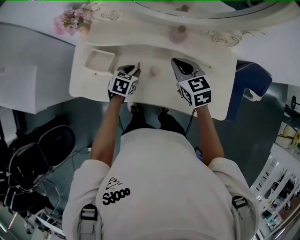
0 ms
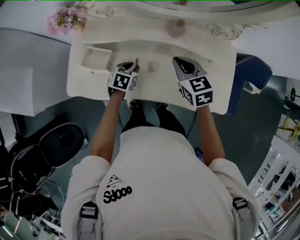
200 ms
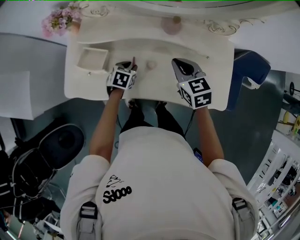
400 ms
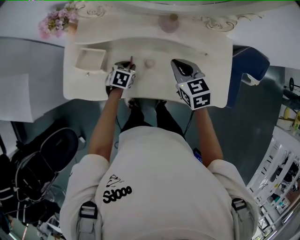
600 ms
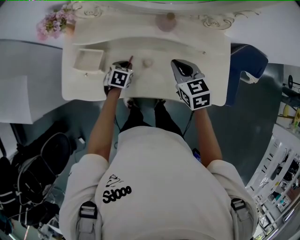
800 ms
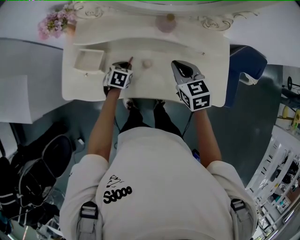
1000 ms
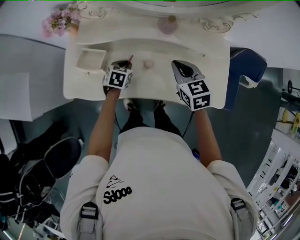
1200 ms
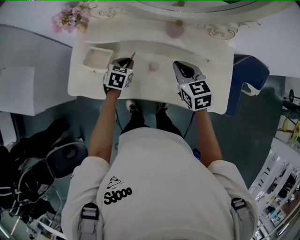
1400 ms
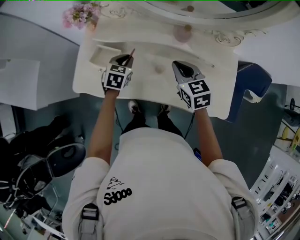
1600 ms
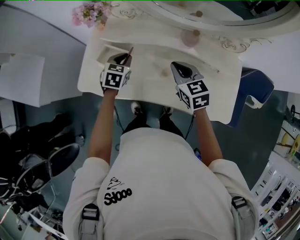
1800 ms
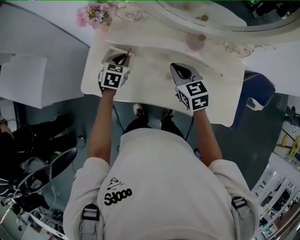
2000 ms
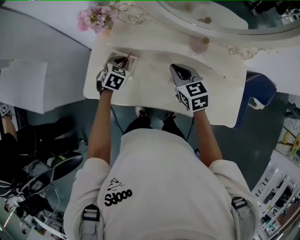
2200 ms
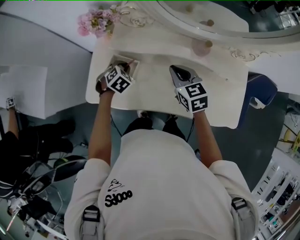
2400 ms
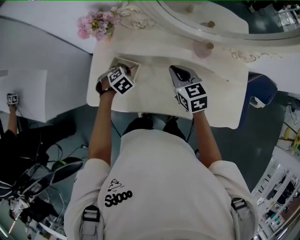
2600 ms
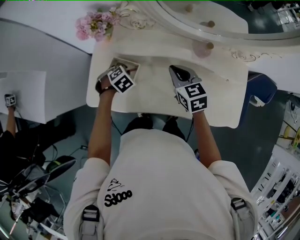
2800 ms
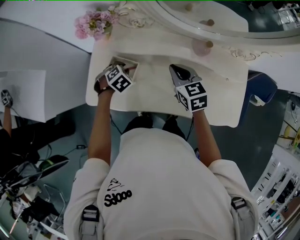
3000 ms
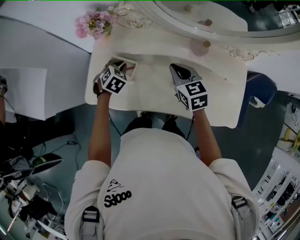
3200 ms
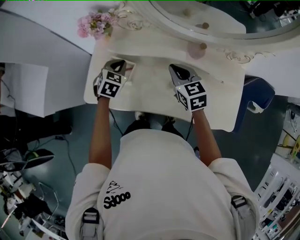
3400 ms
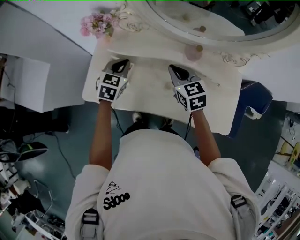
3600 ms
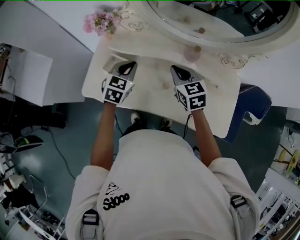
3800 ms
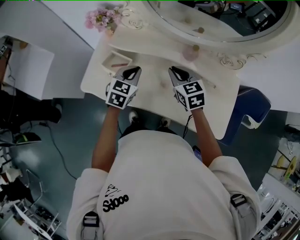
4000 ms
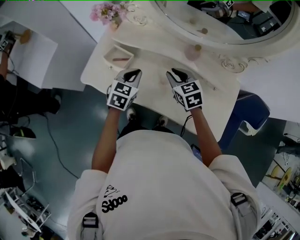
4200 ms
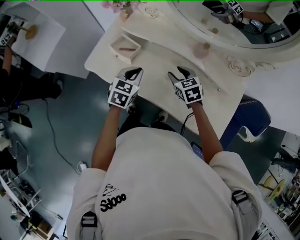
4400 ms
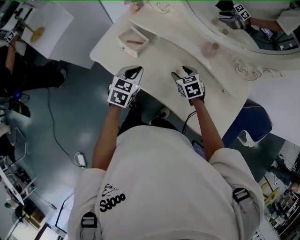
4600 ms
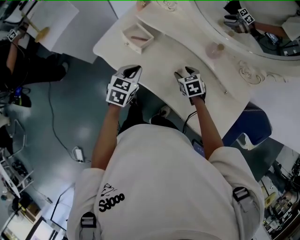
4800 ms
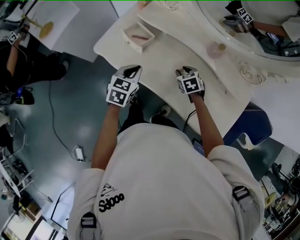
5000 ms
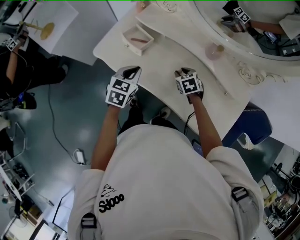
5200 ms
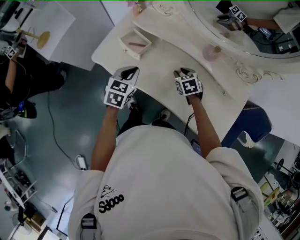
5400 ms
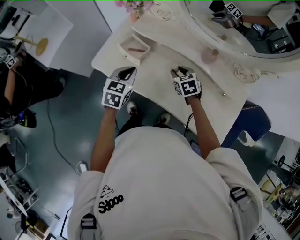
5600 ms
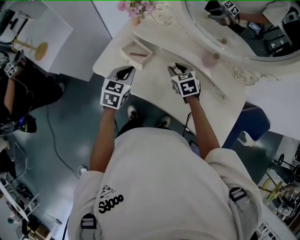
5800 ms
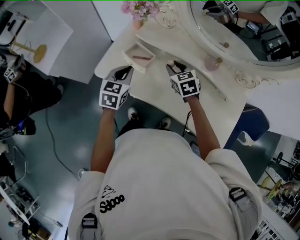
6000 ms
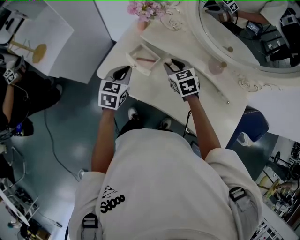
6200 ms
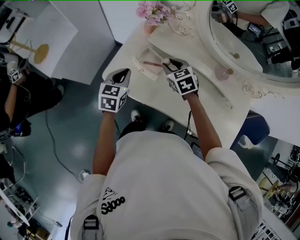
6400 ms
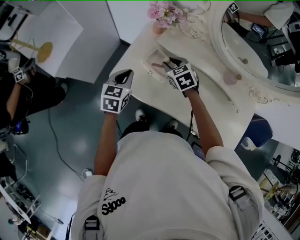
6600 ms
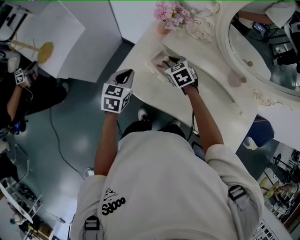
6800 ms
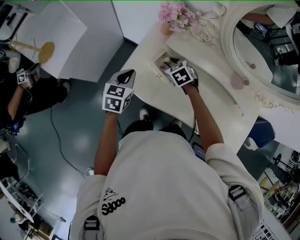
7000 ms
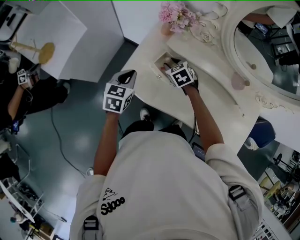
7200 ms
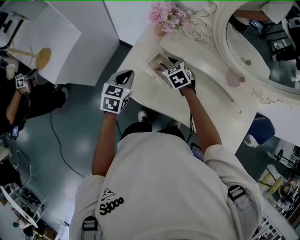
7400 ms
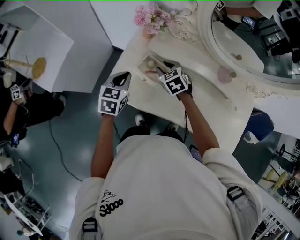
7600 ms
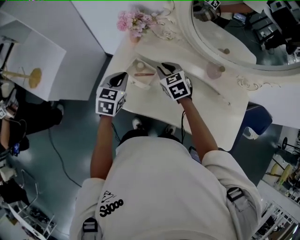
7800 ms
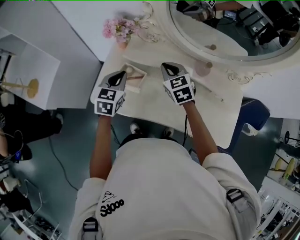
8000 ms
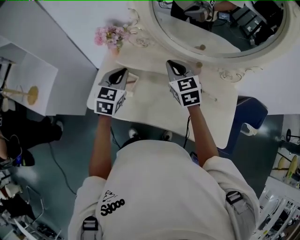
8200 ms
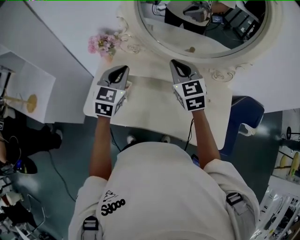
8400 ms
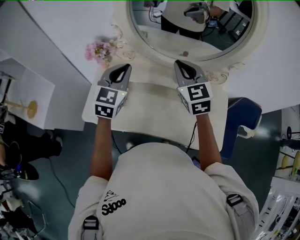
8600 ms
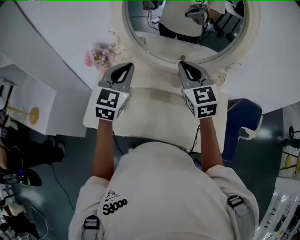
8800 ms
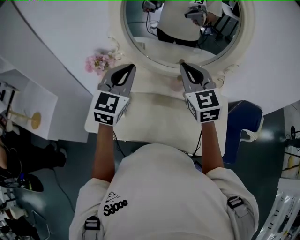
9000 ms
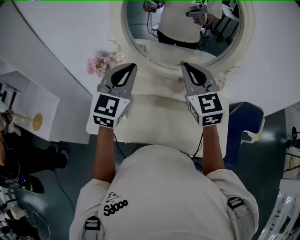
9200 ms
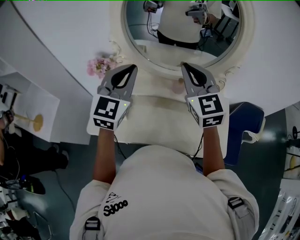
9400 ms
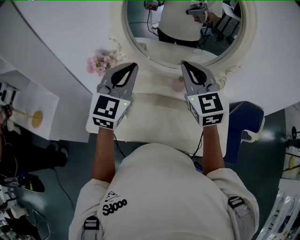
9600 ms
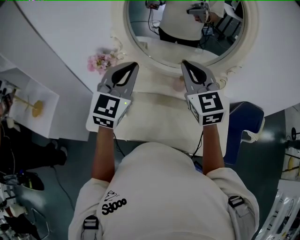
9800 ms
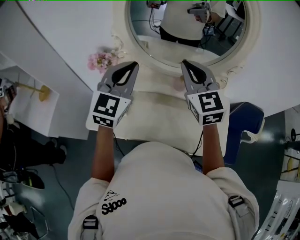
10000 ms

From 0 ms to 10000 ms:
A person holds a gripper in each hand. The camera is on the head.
From 0 ms to 1400 ms: The left gripper moves roughly 5 cm downward and comes back.
From 1400 ms to 2800 ms: The left gripper goes roughly 15 cm to the left, and changes its angle by approximately 40 degrees. Meanwhile the right gripper shifts roughly 15 cm to the left and forward.
From 2800 ms to 4200 ms: The left gripper is displaced upward, to the right and backward by some 20 cm, and points its fingers some 40 degrees further upward; the right gripper shifts approximately 10 cm to the right and backward.
From 4200 ms to 5800 ms: The right gripper shifts approximately 5 cm to the left, reaches some 15 cm downward, then returns, and opens, then closes again. The left gripper travels to the left by roughly 10 cm.
From 5800 ms to 7200 ms: The grippers both shift to the left and forward by roughly 20 cm.
From 7200 ms to 8600 ms: The left gripper shifts roughly 35 cm to the right and upward, and changes its angle by some 30 degrees, while the right gripper goes approximately 40 cm upward and to the right, tips its fingers upward by some 40 degrees, and closes up.
From 8600 ms to 10000 ms: The two grippers go roughly 10 cm upward.

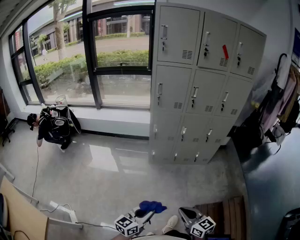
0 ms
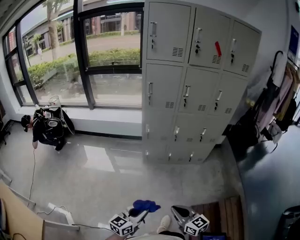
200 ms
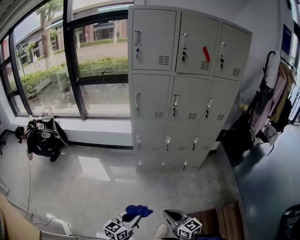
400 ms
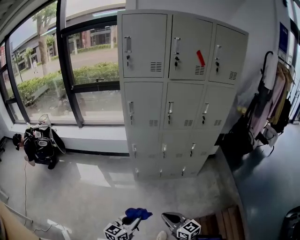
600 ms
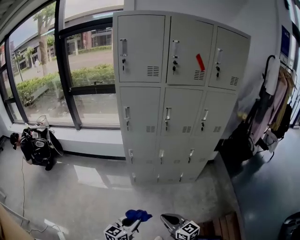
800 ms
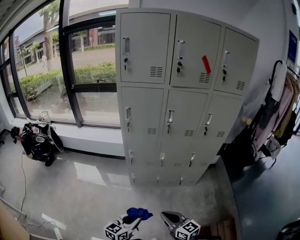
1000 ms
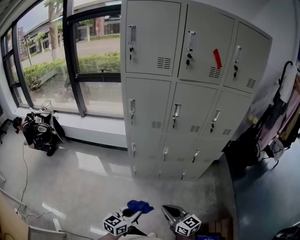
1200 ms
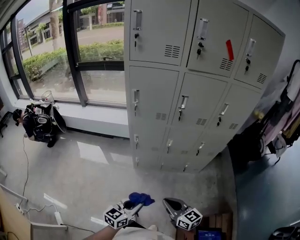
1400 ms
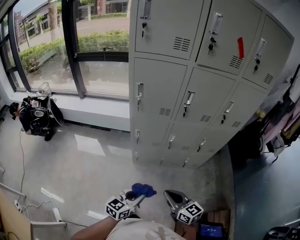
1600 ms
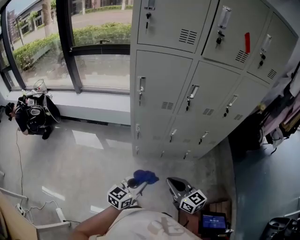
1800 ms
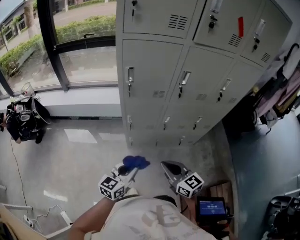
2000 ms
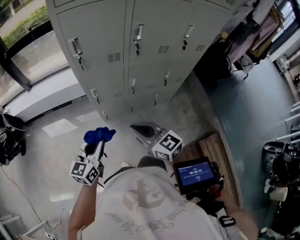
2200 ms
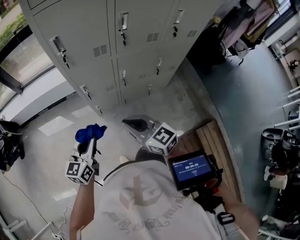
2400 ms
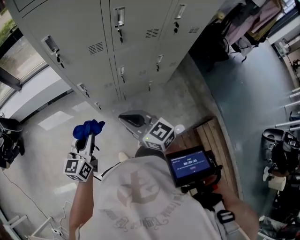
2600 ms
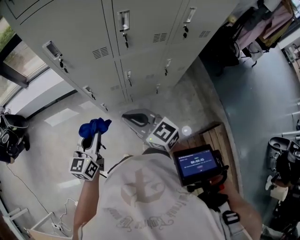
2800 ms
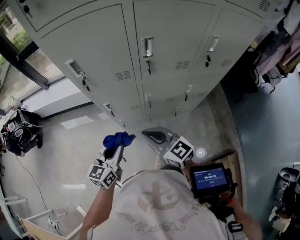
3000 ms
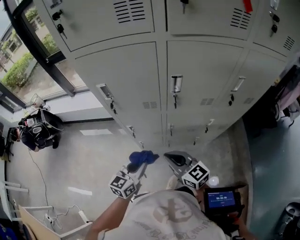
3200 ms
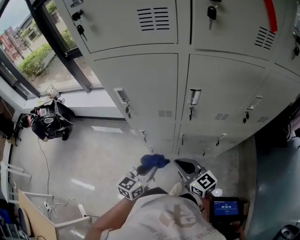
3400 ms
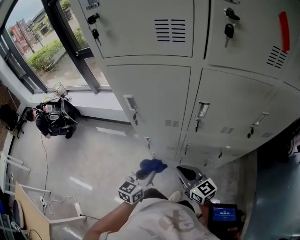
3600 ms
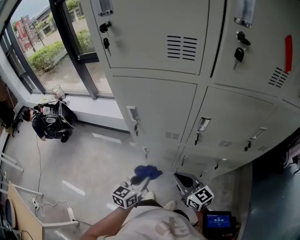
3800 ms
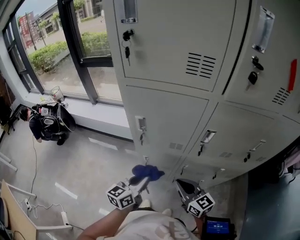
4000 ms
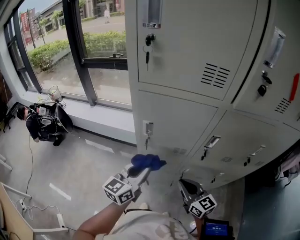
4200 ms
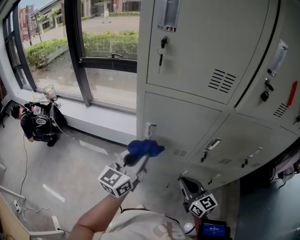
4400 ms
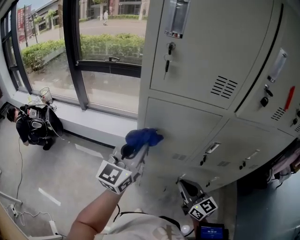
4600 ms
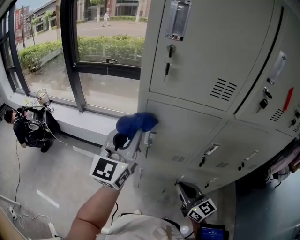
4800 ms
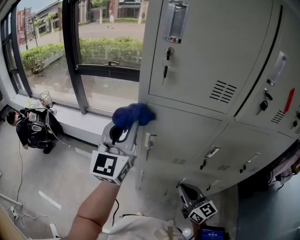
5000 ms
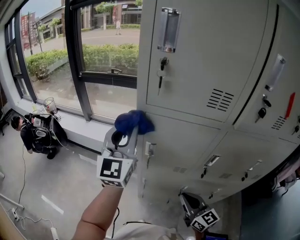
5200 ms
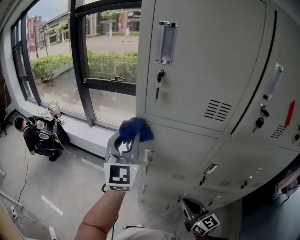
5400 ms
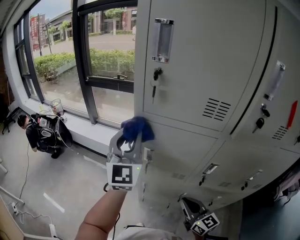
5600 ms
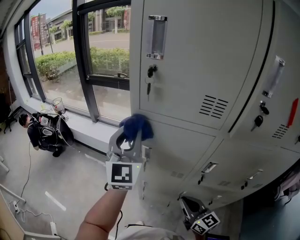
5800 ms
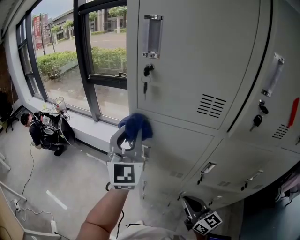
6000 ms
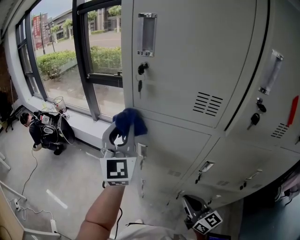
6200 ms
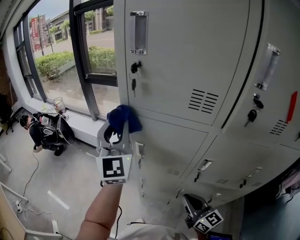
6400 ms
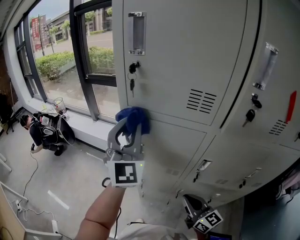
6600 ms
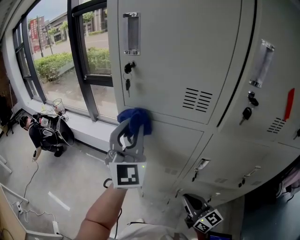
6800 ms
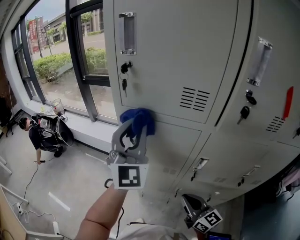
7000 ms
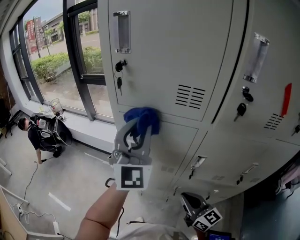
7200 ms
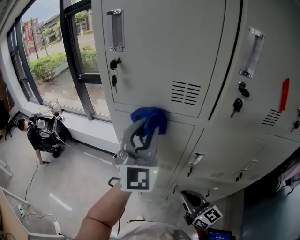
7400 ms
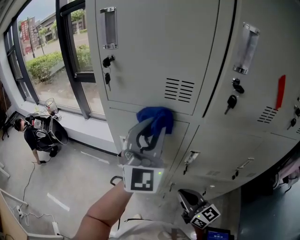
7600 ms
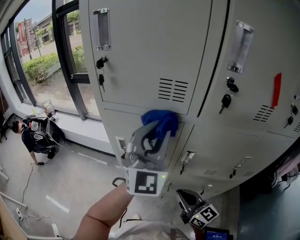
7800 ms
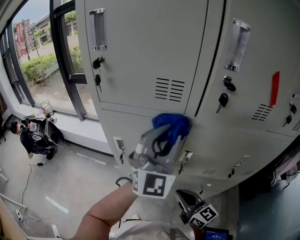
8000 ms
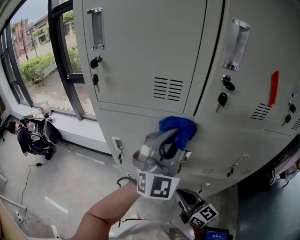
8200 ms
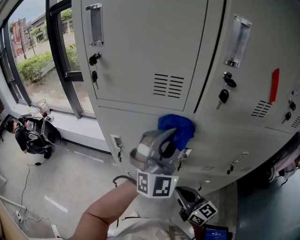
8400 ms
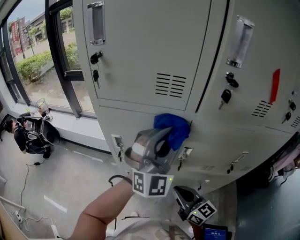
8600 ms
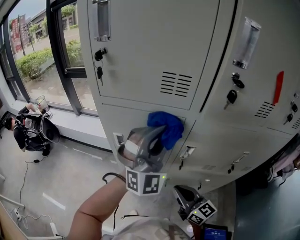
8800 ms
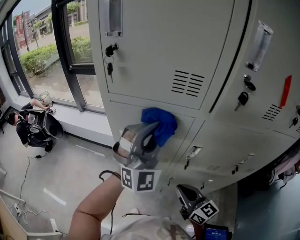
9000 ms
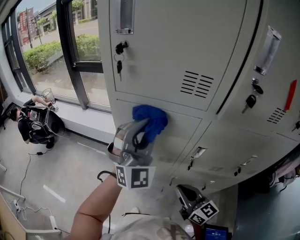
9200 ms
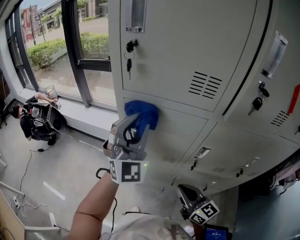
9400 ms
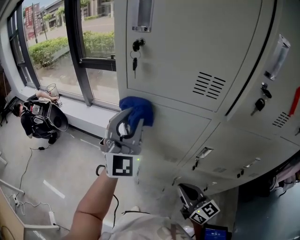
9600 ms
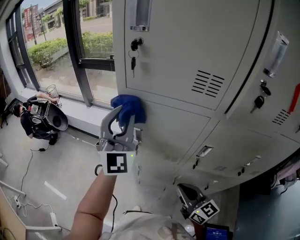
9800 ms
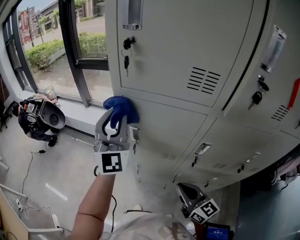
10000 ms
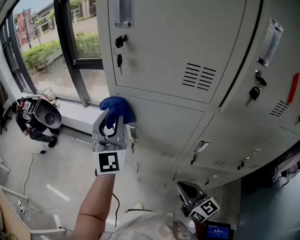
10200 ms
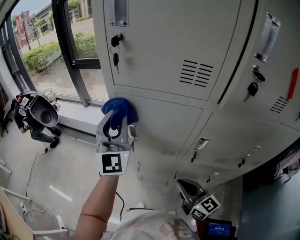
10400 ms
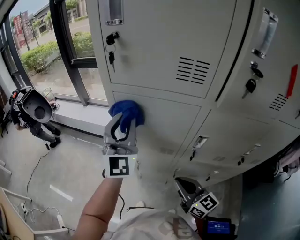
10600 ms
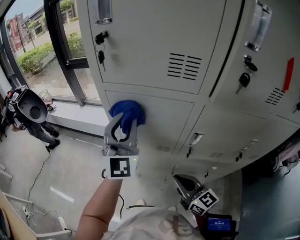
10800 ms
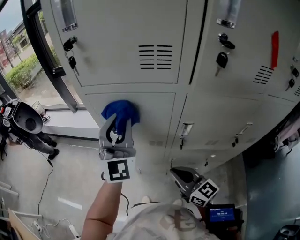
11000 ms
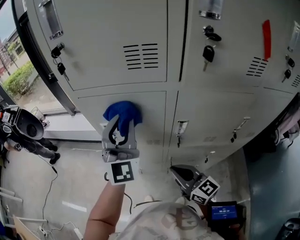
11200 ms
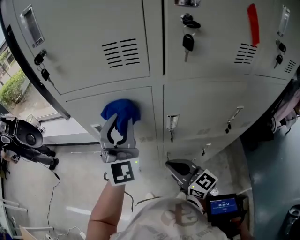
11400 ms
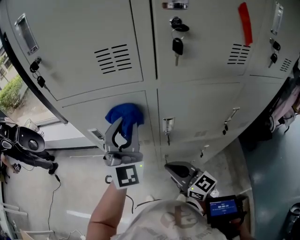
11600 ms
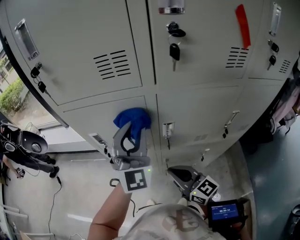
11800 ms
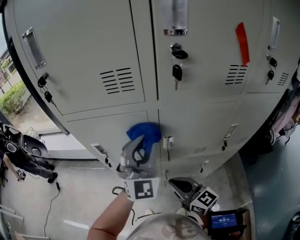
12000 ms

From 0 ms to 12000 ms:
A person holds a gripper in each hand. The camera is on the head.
From 0 ms to 1600 ms: The grippers both shift forward by about 30 cm.
From 1600 ms to 3000 ms: The two grippers go roughly 20 cm forward.
From 3000 ms to 4400 ms: The left gripper shifts approximately 30 cm upward and forward, and swivels about 20 degrees, while the right gripper goes roughly 15 cm forward and upward.
From 4400 ms to 6000 ms: The right gripper moves approximately 5 cm, while the left gripper moves upward and forward, about 20 cm, and changes its angle by approximately 50 degrees.
From 6000 ms to 7600 ms: The left gripper heads to the right and backward, covering some 15 cm, and turns by some 20 degrees.
From 7600 ms to 9000 ms: The left gripper goes approximately 5 cm downward, and travels to the right and back again, approximately 10 cm each way.
From 9000 ms to 10400 ms: The left gripper travels to the left and forward by approximately 15 cm, and swivels approximately 30 degrees.
From 10400 ms to 12000 ms: The left gripper is displaced to the right by some 20 cm, and swivels roughly 30 degrees.

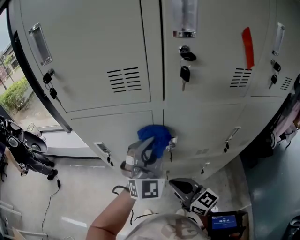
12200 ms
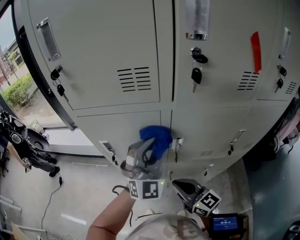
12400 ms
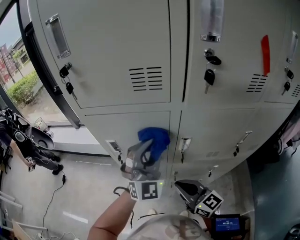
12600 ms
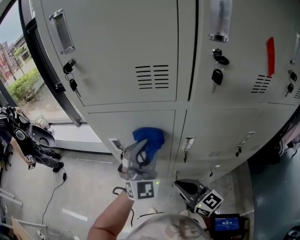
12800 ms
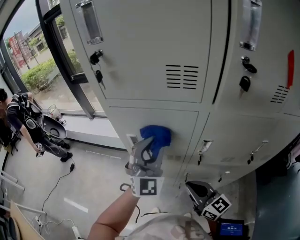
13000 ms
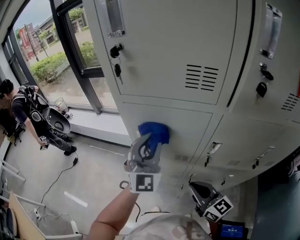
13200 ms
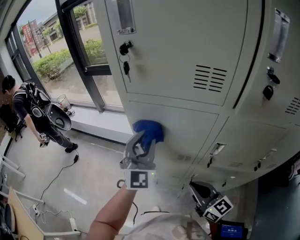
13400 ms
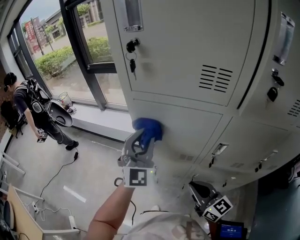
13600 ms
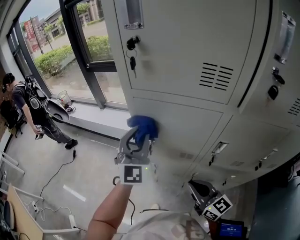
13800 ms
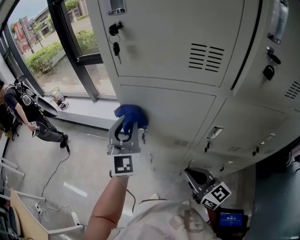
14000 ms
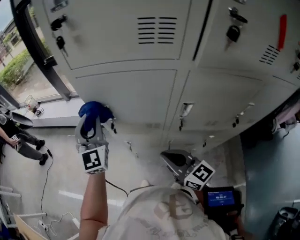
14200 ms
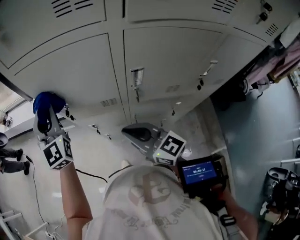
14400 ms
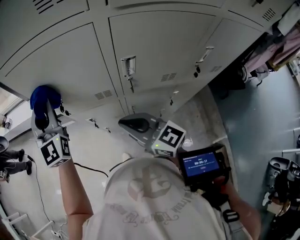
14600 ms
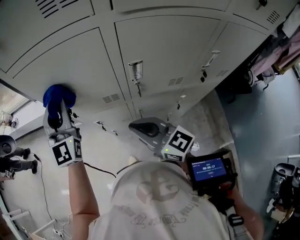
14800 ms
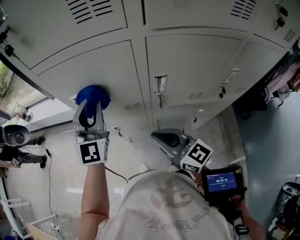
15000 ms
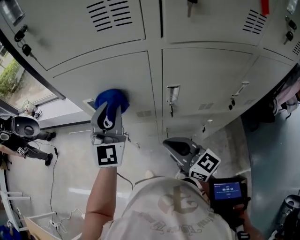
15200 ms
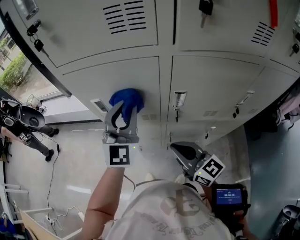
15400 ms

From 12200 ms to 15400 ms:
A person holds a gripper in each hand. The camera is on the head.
From 12200 ms to 13800 ms: The left gripper is displaced to the left by approximately 25 cm, and rotates some 20 degrees. Meanwhile the right gripper goes approximately 5 cm to the left.
From 13800 ms to 15400 ms: The left gripper heads to the right and backward, covering some 15 cm, while the right gripper moves roughly 5 cm.
